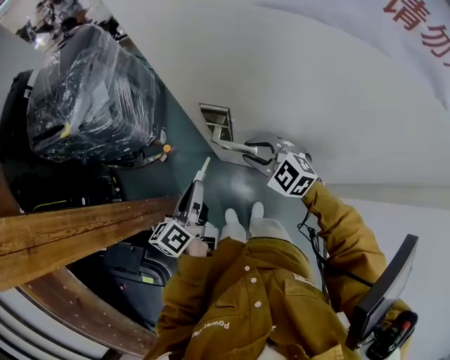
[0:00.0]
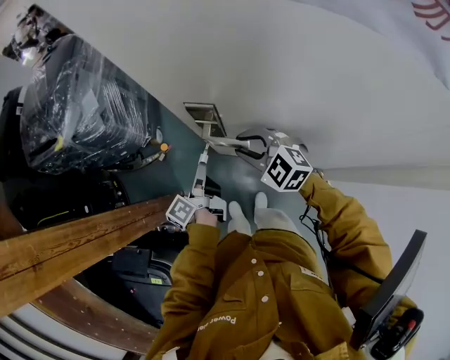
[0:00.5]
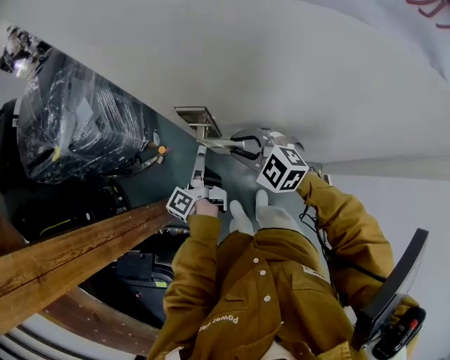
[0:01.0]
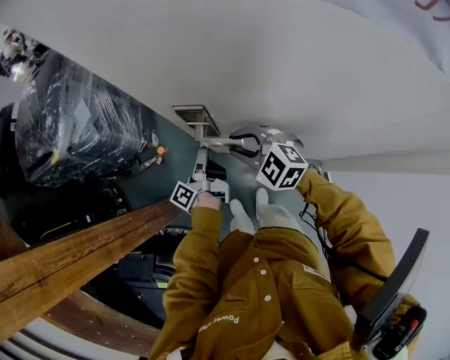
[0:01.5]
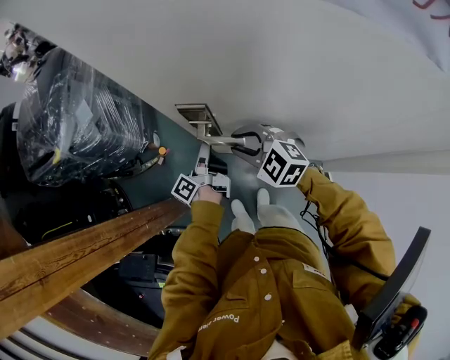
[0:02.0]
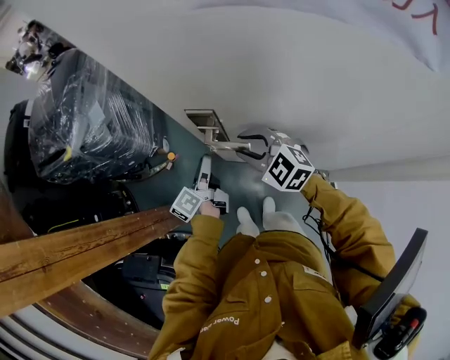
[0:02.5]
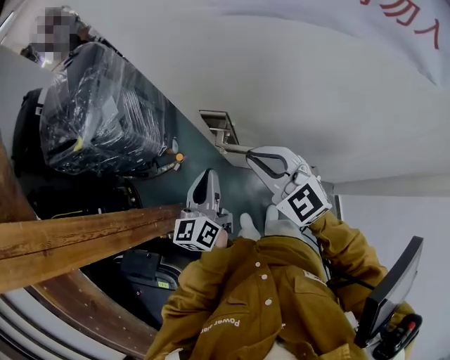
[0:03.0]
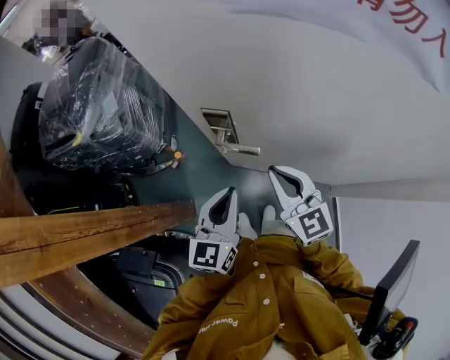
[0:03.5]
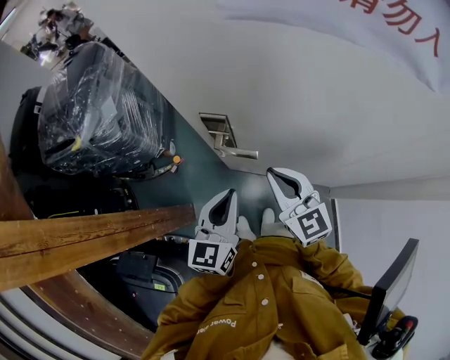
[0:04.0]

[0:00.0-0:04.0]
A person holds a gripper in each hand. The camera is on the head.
0:00.0 to 0:02.0: The left gripper goes some 15 cm downward, forward and to the right, and turns by some 40 degrees.
0:02.0 to 0:04.0: The right gripper heads upward and backward, covering approximately 10 cm, swivels some 40 degrees, and closes its fingers, while the left gripper travels upward and backward by roughly 20 cm, rolls clockwise, seen from behind, by some 80 degrees, and opens, then closes once more.

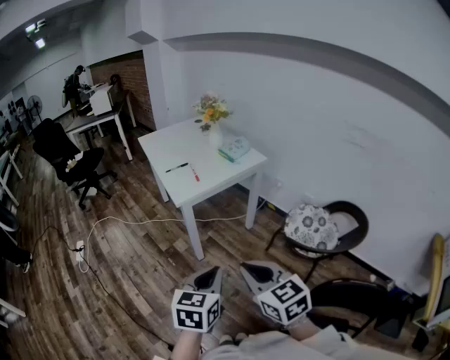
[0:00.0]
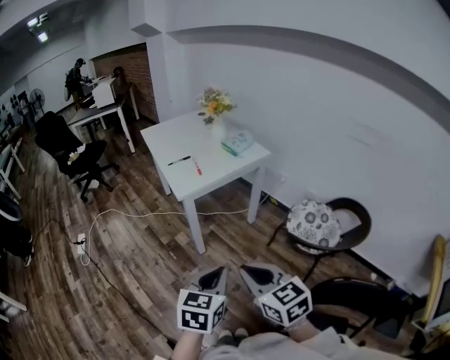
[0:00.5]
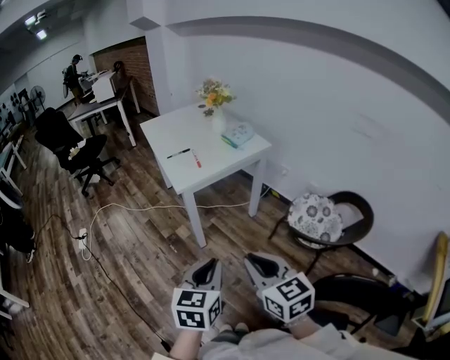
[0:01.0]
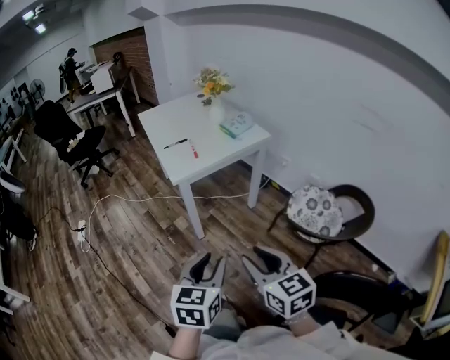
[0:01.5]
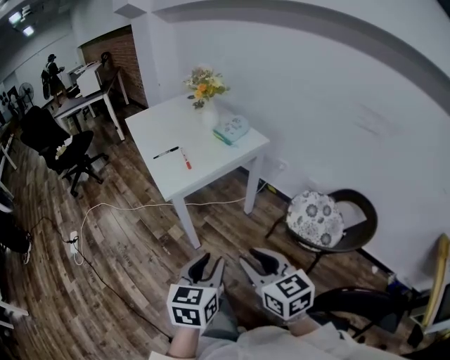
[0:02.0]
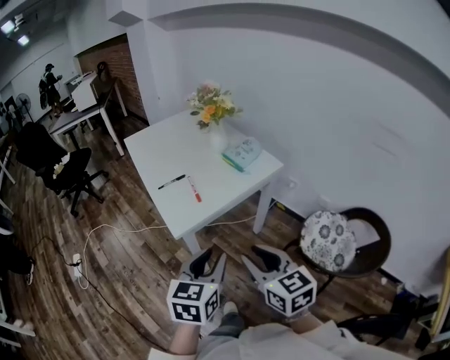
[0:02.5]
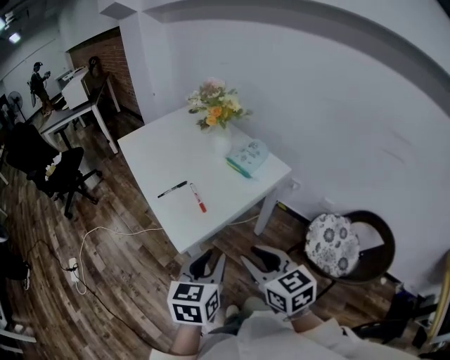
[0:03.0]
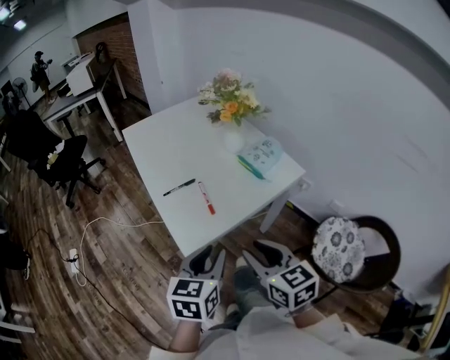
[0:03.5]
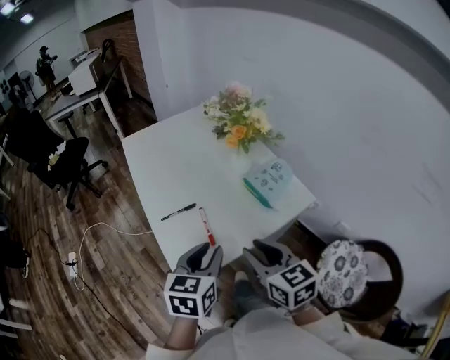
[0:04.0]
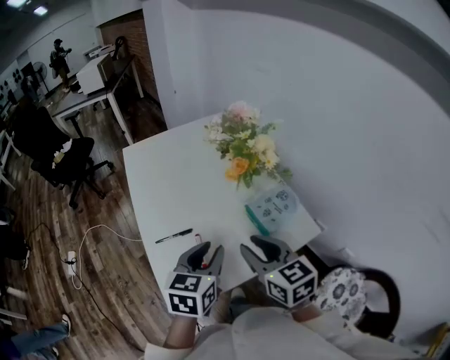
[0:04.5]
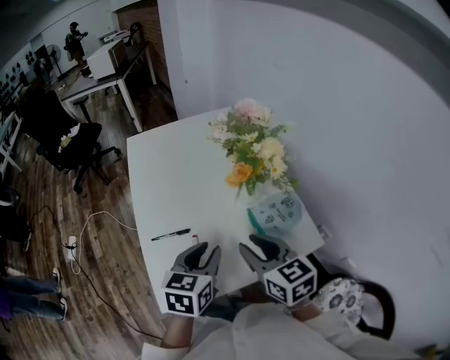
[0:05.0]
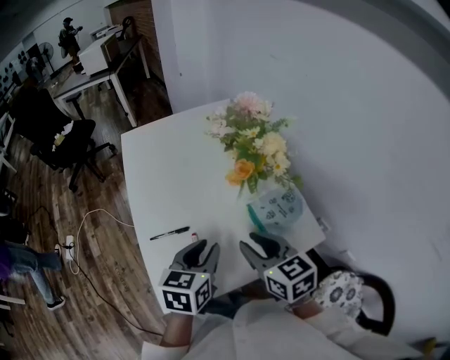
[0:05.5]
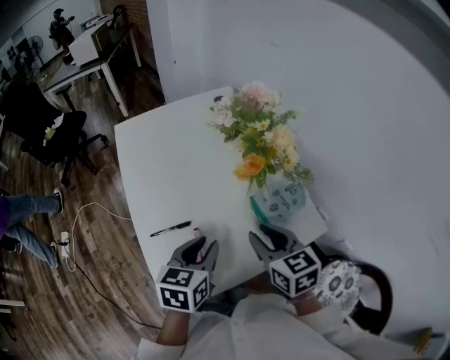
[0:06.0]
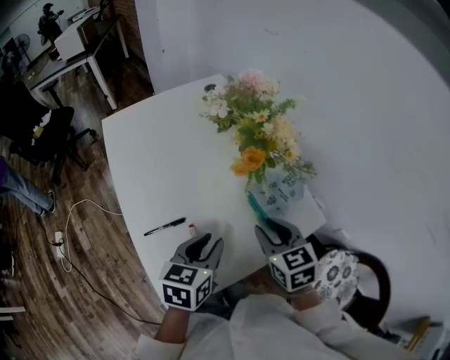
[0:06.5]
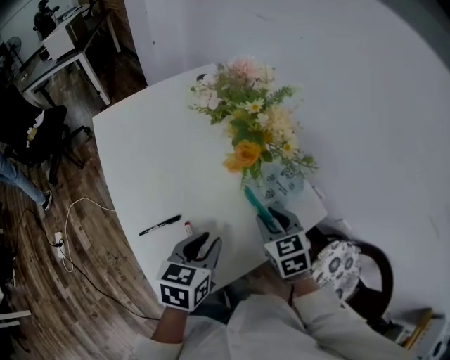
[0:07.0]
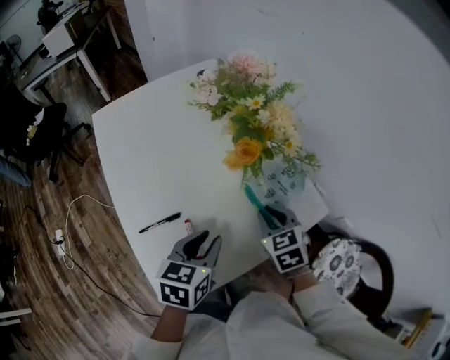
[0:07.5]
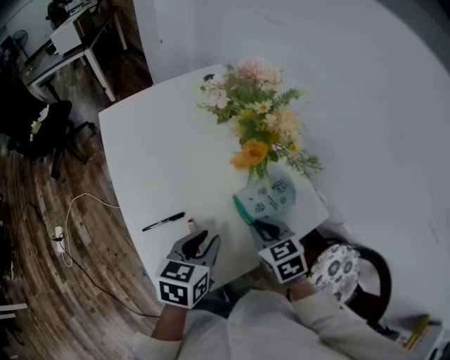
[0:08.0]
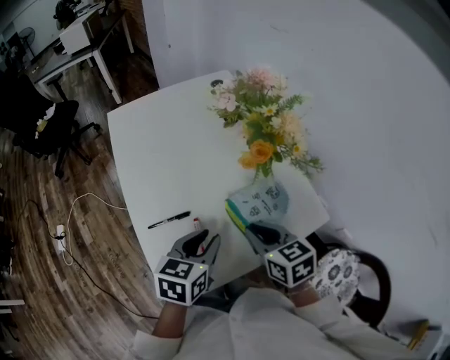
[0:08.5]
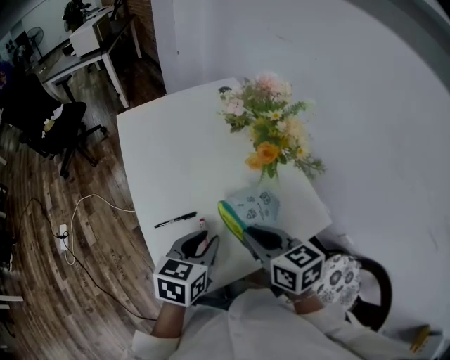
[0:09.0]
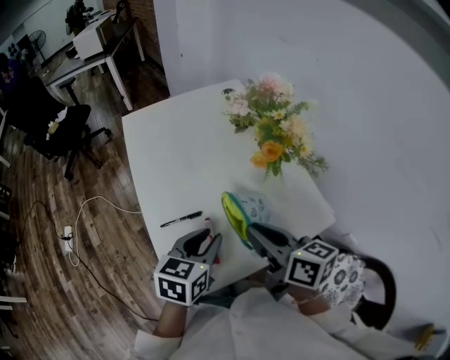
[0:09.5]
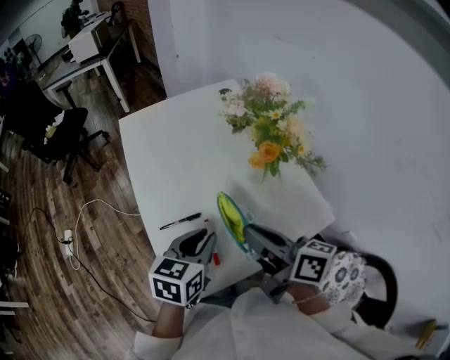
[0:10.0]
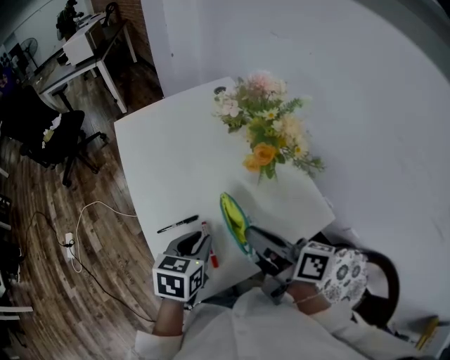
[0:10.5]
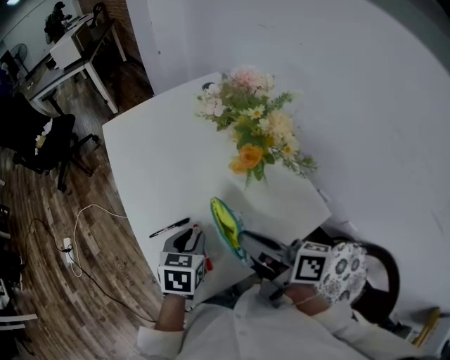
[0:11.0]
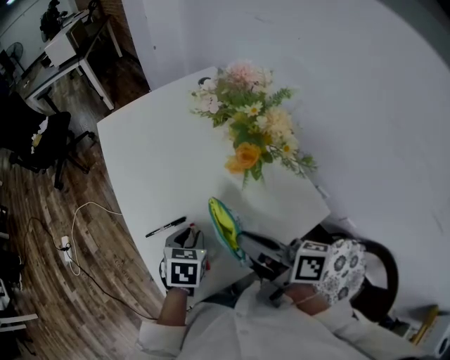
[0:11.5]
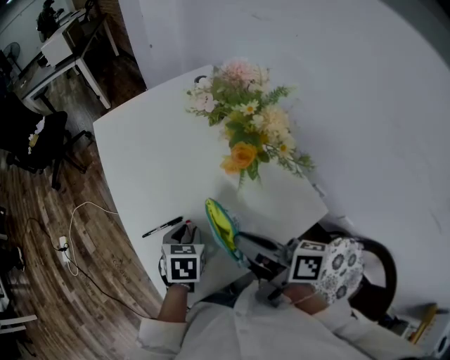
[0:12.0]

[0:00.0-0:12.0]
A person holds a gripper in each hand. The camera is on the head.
0:00.0 to 0:02.0: Both grippers travel together forward, approximately 10 cm. The right gripper opens. Meanwhile the left gripper opens.
0:02.0 to 0:04.0: The grippers both shift forward by roughly 35 cm.
0:04.0 to 0:06.0: The two grippers go approximately 15 cm forward.
0:06.0 to 0:08.0: The right gripper travels downward by approximately 10 cm.
0:08.0 to 0:10.0: The left gripper shifts by approximately 5 cm; the right gripper moves upward and to the left, roughly 15 cm, and tips its fingers upward by roughly 40 degrees.
0:10.0 to 0:12.0: The left gripper goes approximately 10 cm downward, and swivels roughly 30 degrees.

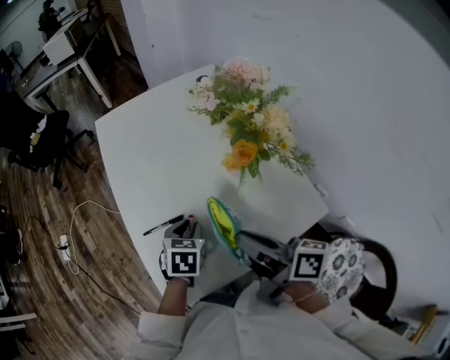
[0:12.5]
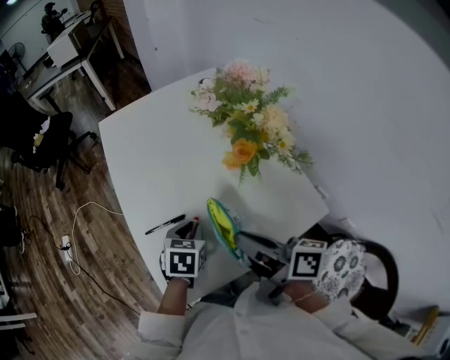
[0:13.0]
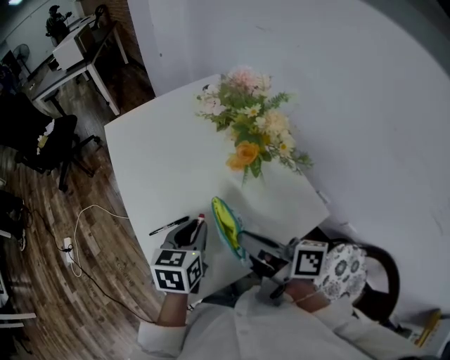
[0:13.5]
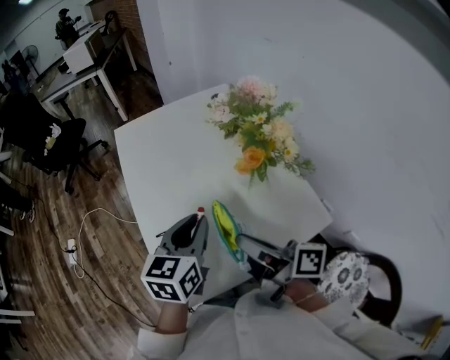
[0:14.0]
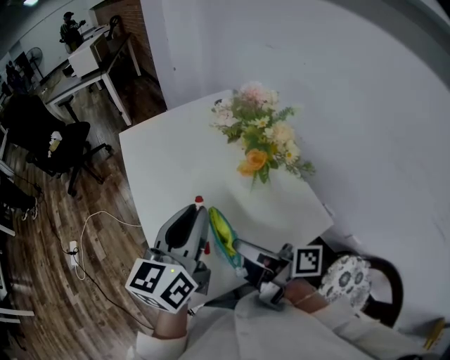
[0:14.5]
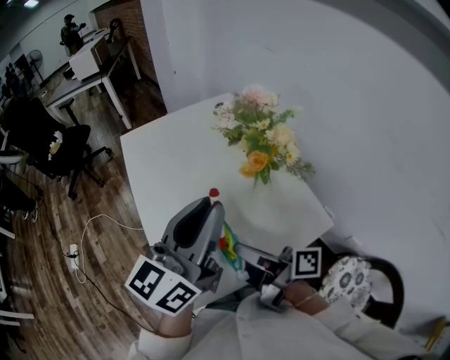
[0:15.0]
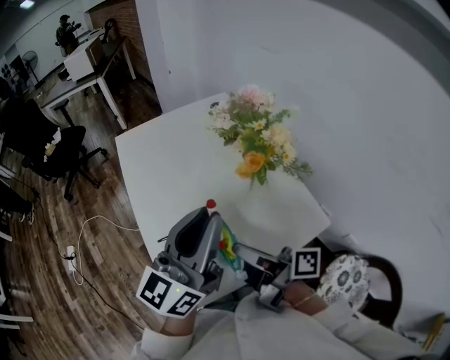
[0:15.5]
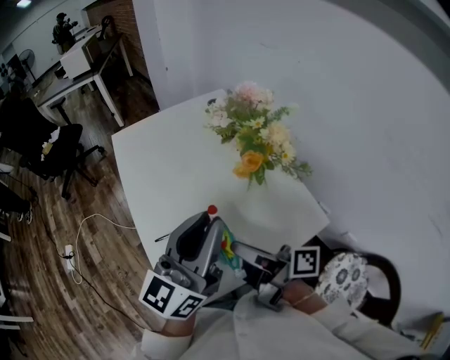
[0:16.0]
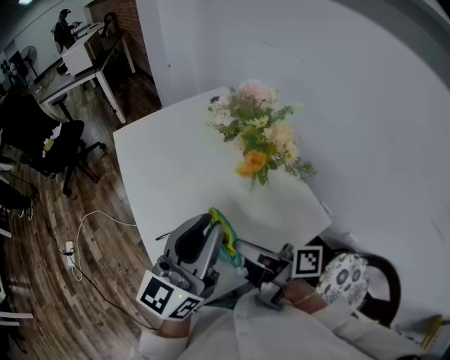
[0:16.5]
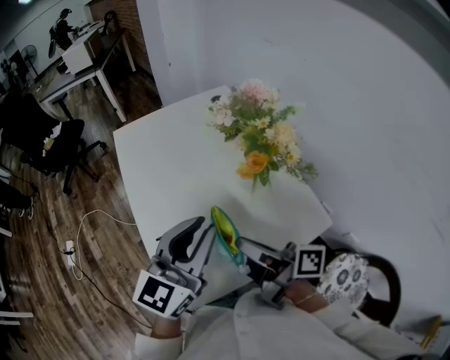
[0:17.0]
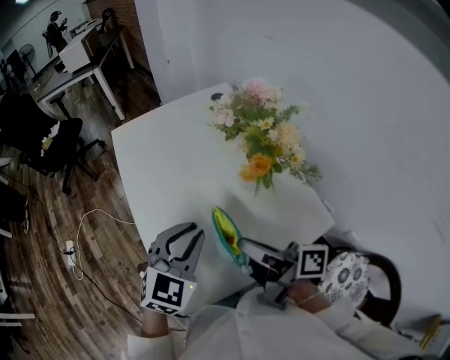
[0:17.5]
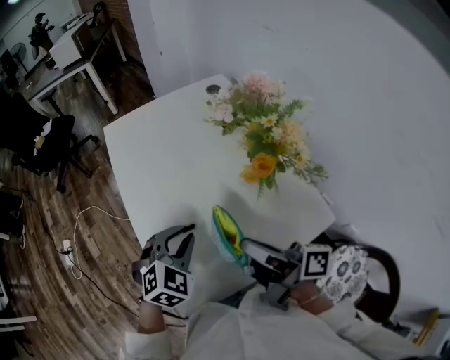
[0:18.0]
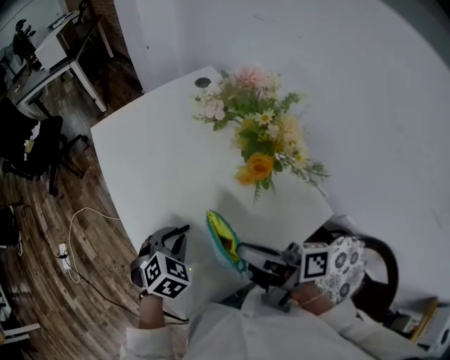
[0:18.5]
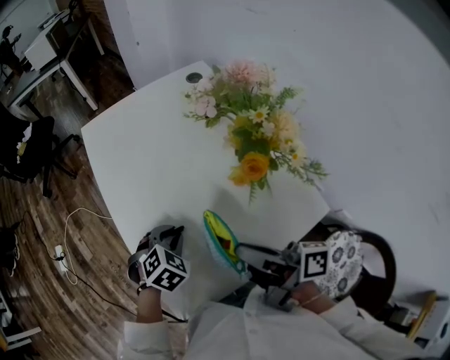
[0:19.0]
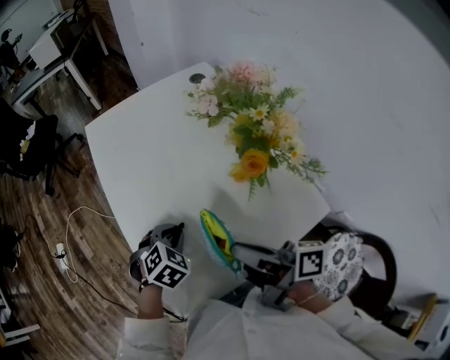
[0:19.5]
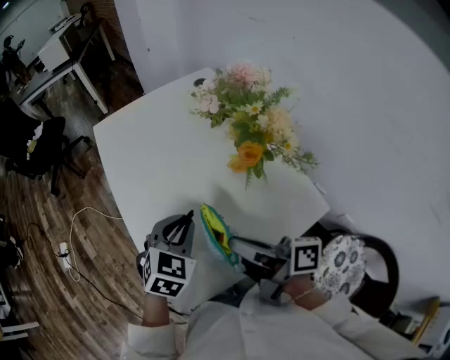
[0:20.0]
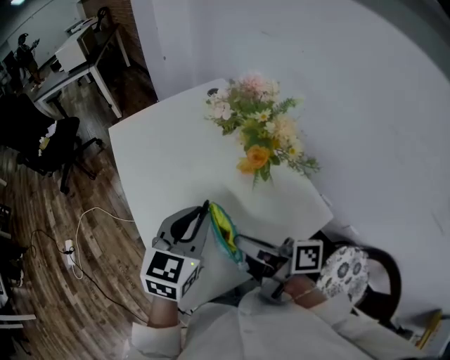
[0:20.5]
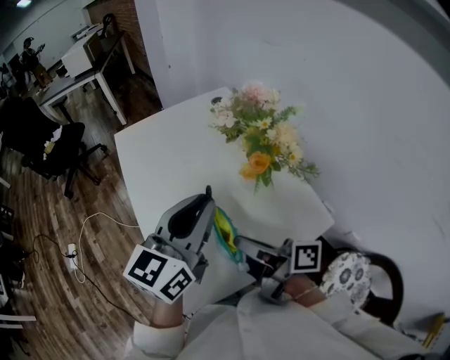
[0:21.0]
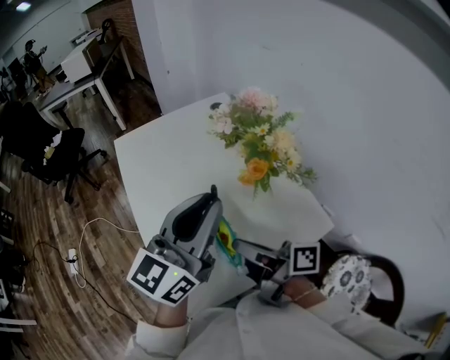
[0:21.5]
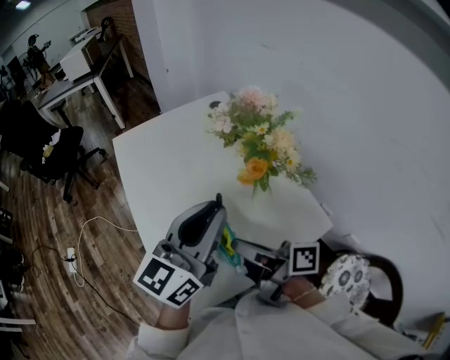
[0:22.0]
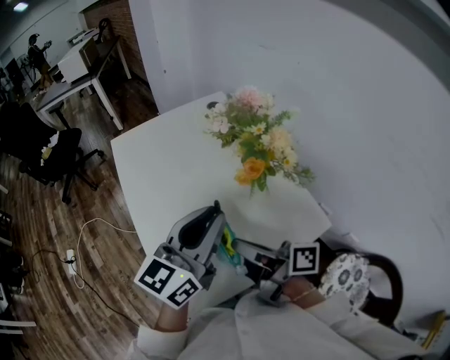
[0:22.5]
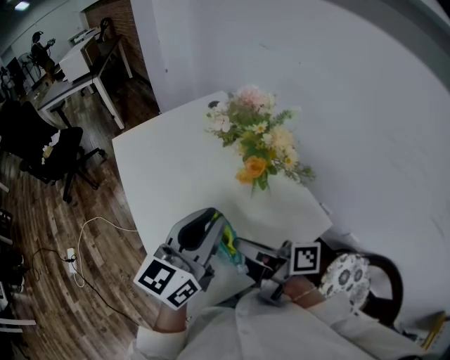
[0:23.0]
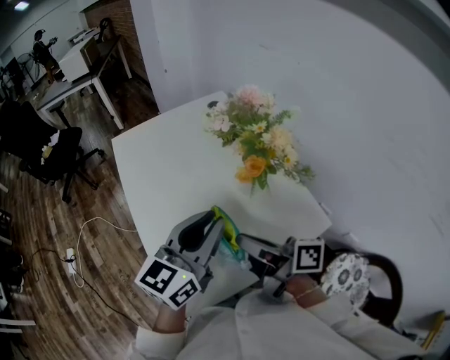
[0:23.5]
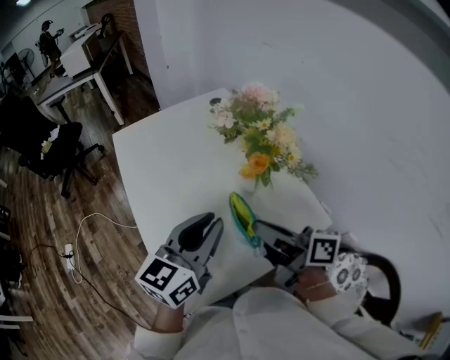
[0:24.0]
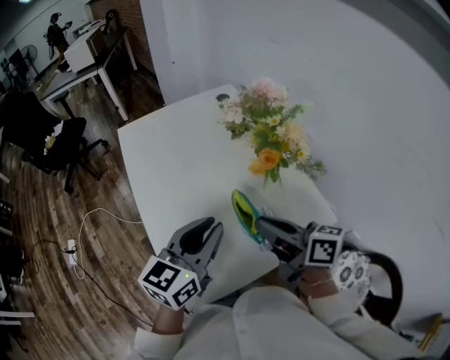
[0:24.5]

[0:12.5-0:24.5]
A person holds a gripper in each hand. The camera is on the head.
0:12.5 to 0:14.5: The left gripper is displaced upward by some 25 cm, and points its fingers roughly 50 degrees further upward.
0:14.5 to 0:16.5: The left gripper changes its angle by about 20 degrees.
0:16.5 to 0:18.5: The left gripper is displaced downward by some 25 cm, and points its fingers roughly 70 degrees further downward.
0:18.5 to 0:20.5: The left gripper is displaced upward and to the right by approximately 15 cm, and tilts its fingers some 30 degrees upward.
0:20.5 to 0:22.5: The left gripper is displaced upward by roughly 10 cm, and swivels some 30 degrees.
0:22.5 to 0:24.5: The left gripper shifts about 5 cm downward. The right gripper turns by about 30 degrees.
